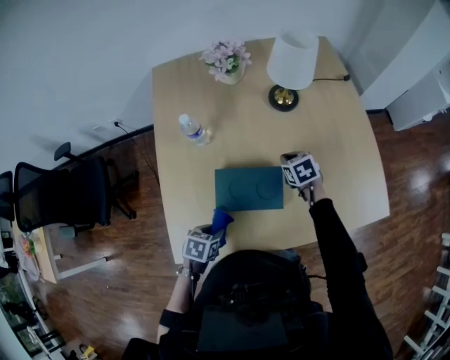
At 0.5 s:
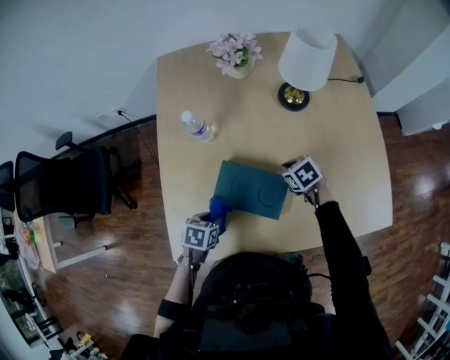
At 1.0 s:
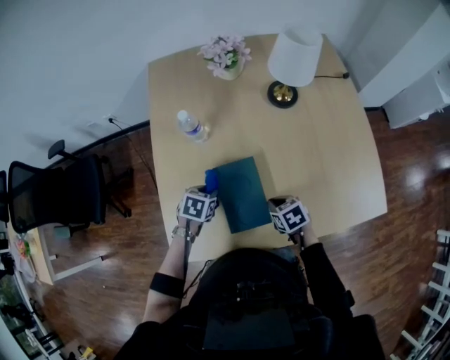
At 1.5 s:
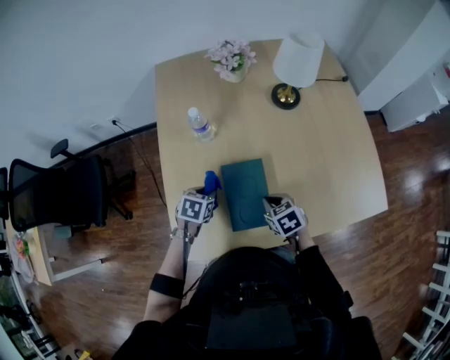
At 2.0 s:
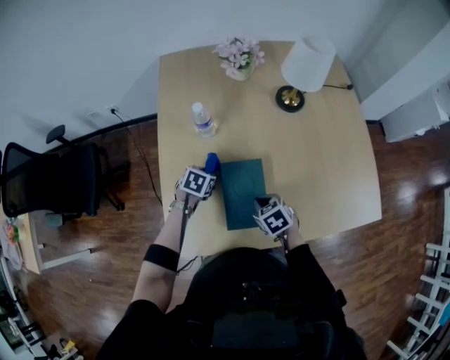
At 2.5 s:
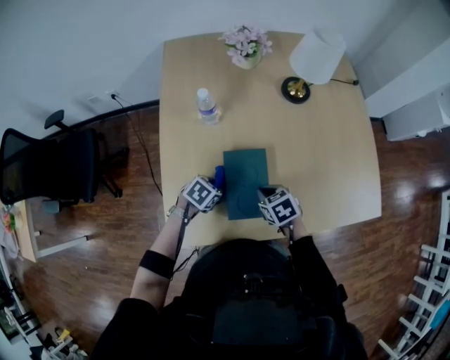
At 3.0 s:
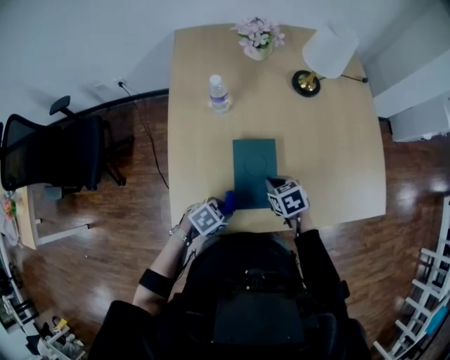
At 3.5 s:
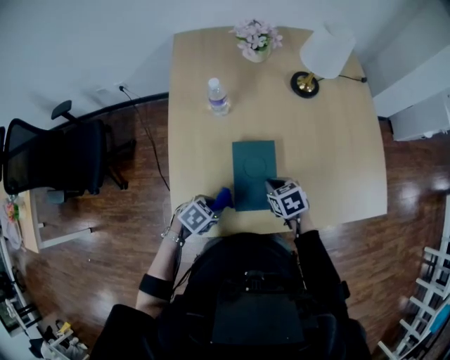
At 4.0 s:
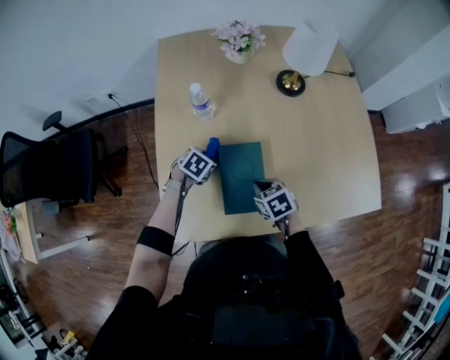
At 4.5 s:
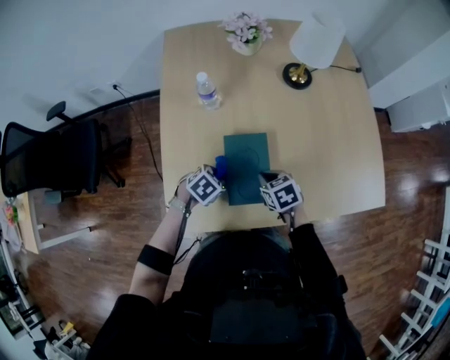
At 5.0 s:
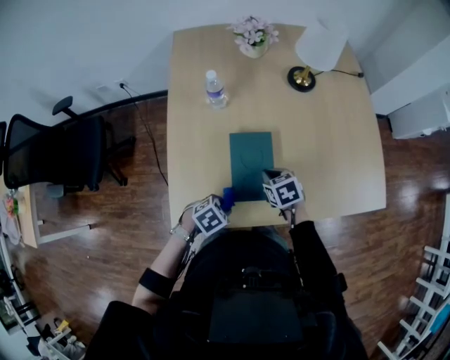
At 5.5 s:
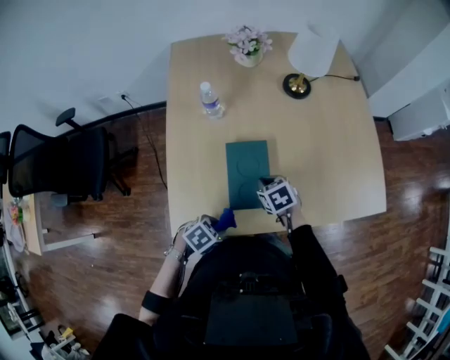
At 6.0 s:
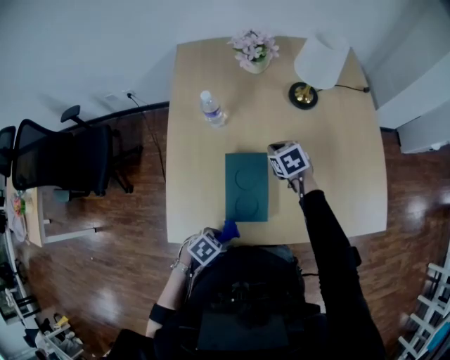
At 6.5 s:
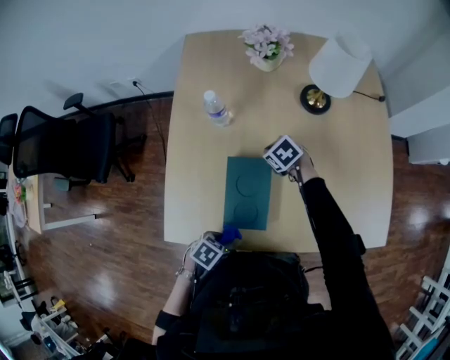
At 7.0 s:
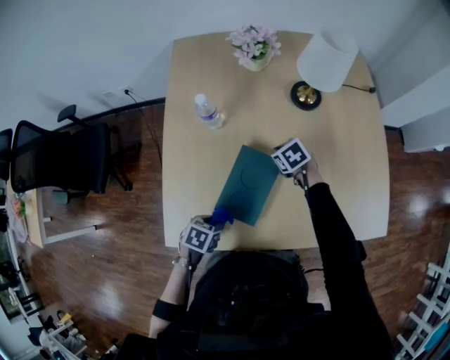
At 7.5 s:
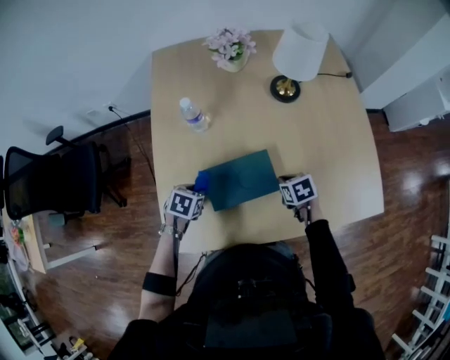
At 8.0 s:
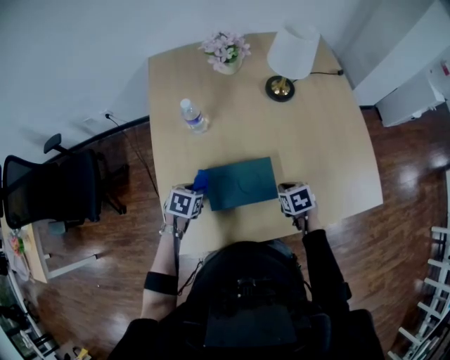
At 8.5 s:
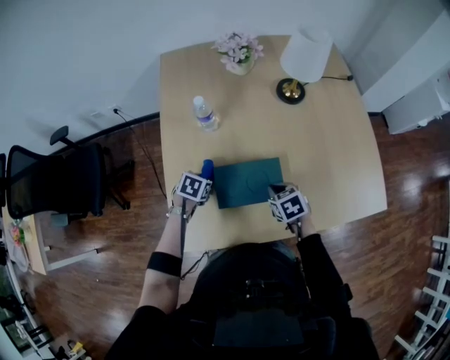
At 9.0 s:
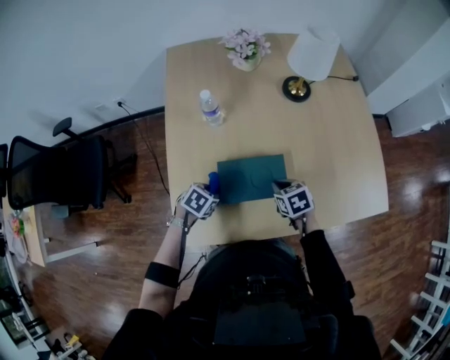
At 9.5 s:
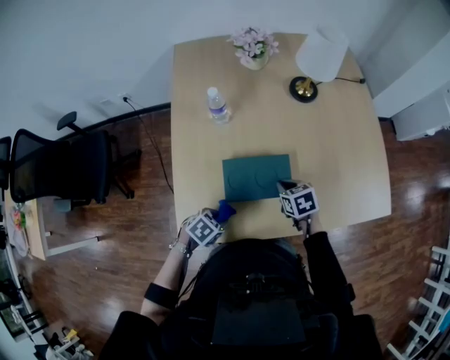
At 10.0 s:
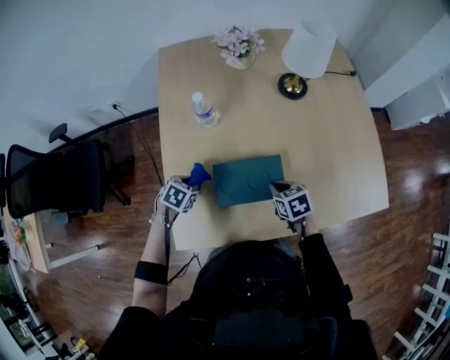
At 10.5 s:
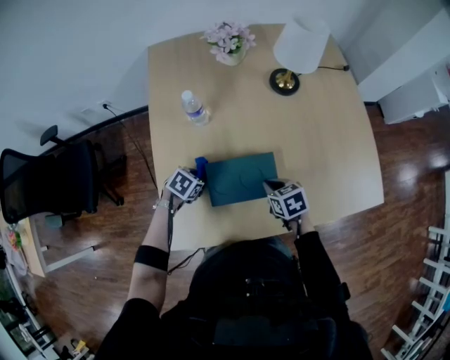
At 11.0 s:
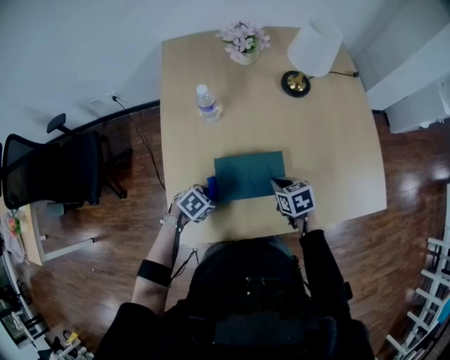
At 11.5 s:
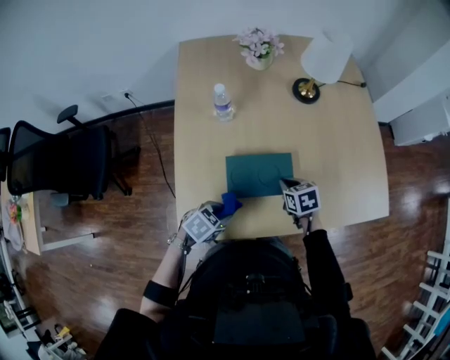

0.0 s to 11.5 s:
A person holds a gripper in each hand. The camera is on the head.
0.0 to 2.0 s: The right gripper moves backward and to the left, roughly 20 cm, while the left gripper travels forward by approximately 20 cm.
4.0 to 6.0 s: The left gripper ends up about 30 cm from where it was; the right gripper moves approximately 15 cm.
6.0 to 7.5 s: The left gripper changes place by approximately 25 cm, and rotates approximately 20 degrees; the right gripper shifts by approximately 15 cm, and changes its angle by approximately 20 degrees.
7.5 to 9.5 s: The left gripper heads backward, covering about 15 cm, and changes its angle by about 30 degrees; the right gripper moves to the left, roughly 5 cm.
9.5 to 11.5 s: The left gripper goes forward and returns, some 15 cm each way.

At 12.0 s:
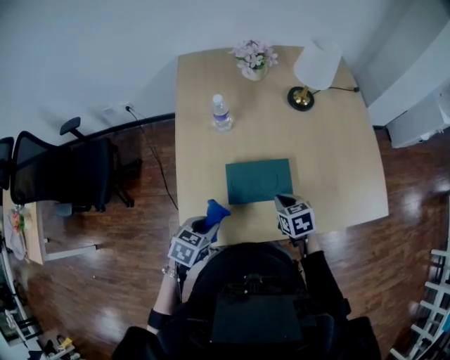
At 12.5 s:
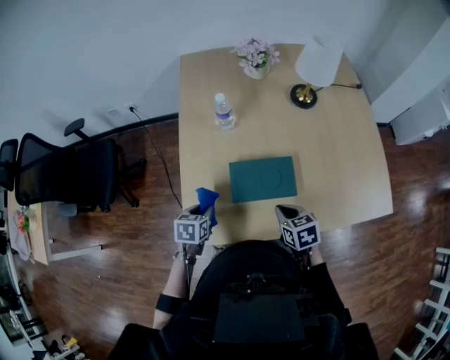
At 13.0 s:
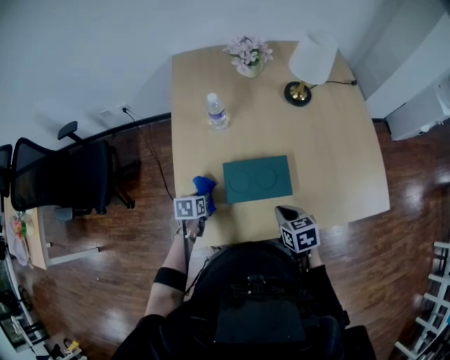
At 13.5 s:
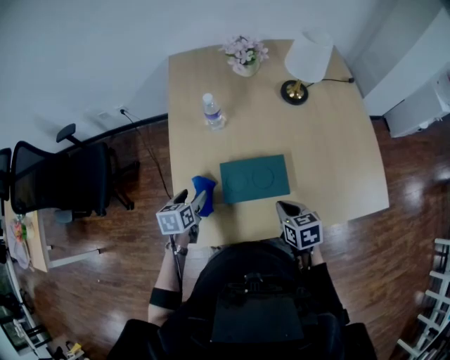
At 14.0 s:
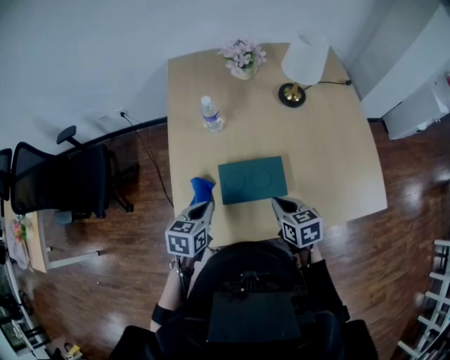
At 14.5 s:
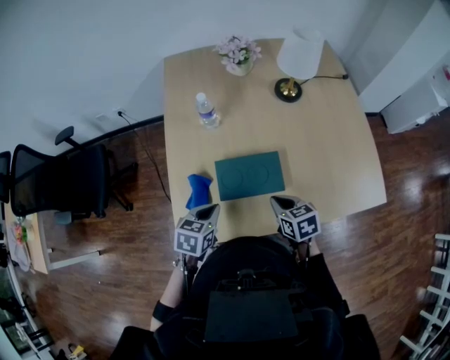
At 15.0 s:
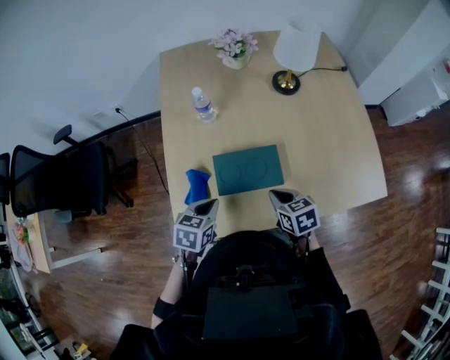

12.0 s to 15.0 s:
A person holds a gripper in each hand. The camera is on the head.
12.0 to 13.5 s: The left gripper moves forward and to the left, about 15 cm, travels downward and back again, some 10 cm each way, rotates about 30 degrees, and opens its fingers.
13.5 to 15.0 s: The left gripper is displaced to the right, backward and upward by some 15 cm, swivels some 20 degrees, and closes up.

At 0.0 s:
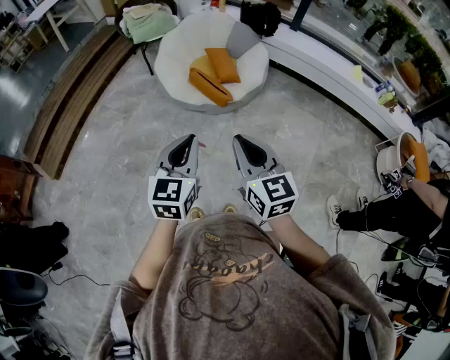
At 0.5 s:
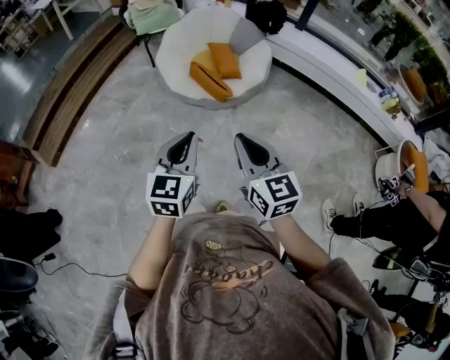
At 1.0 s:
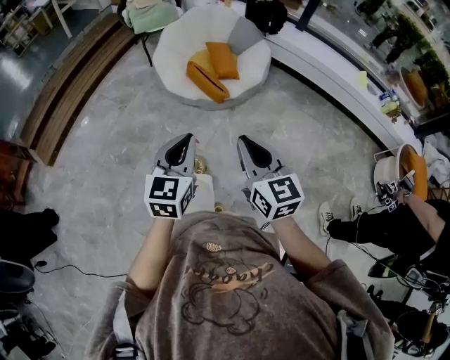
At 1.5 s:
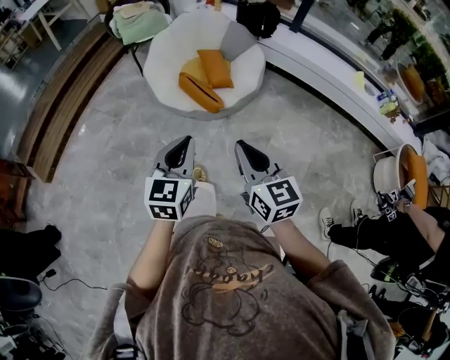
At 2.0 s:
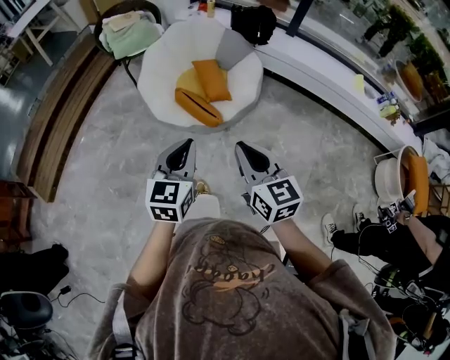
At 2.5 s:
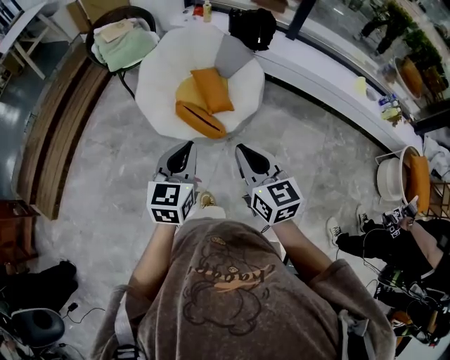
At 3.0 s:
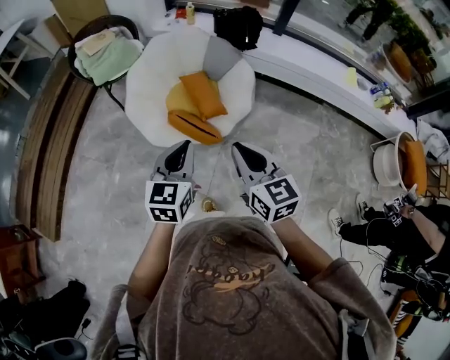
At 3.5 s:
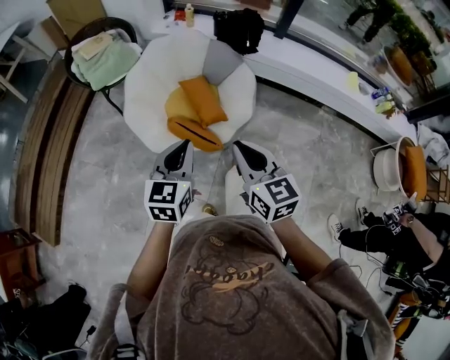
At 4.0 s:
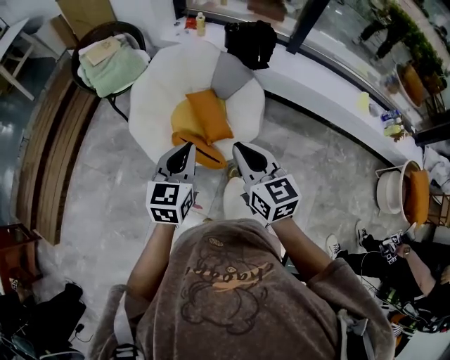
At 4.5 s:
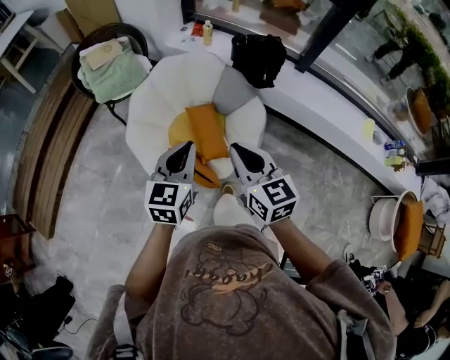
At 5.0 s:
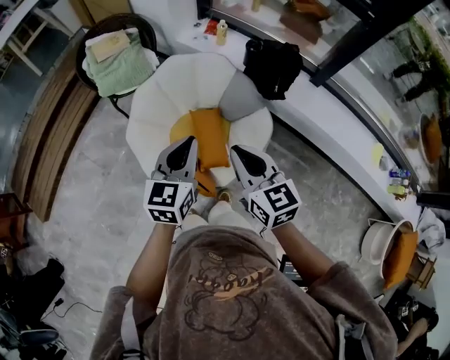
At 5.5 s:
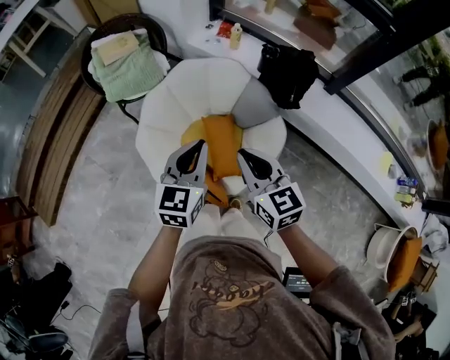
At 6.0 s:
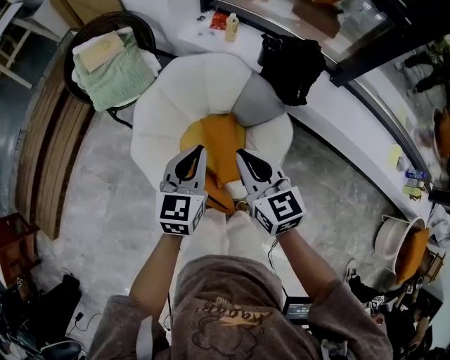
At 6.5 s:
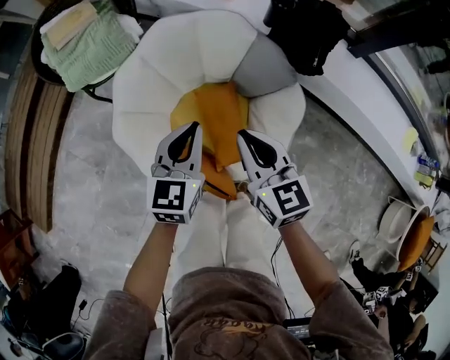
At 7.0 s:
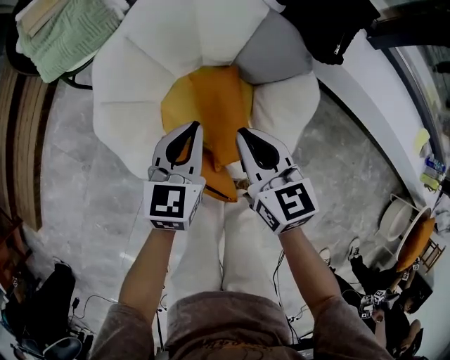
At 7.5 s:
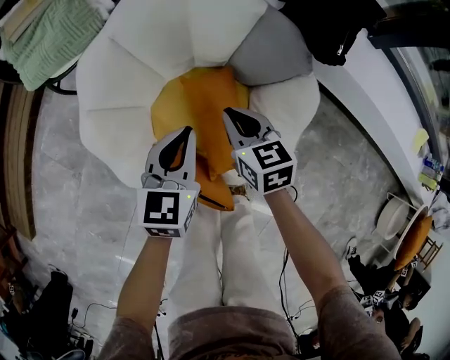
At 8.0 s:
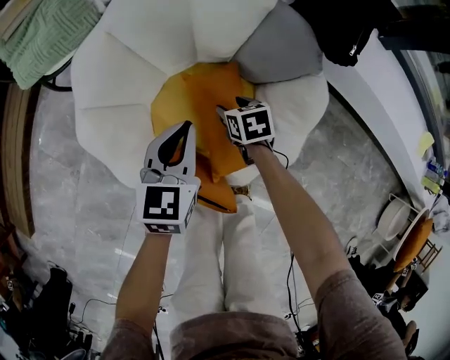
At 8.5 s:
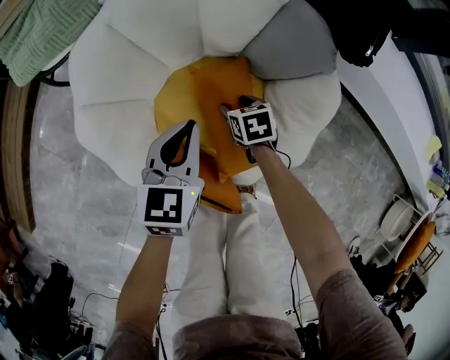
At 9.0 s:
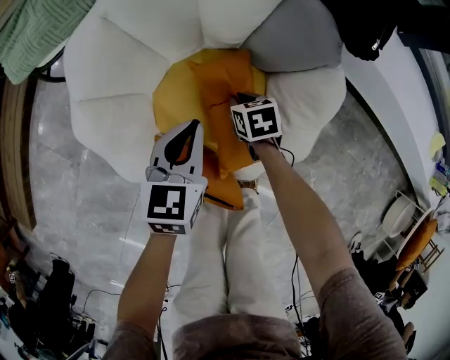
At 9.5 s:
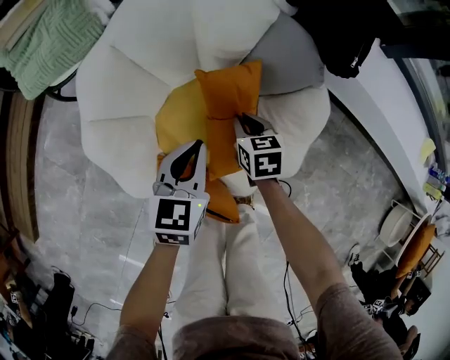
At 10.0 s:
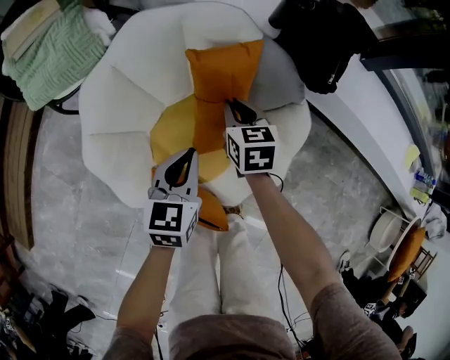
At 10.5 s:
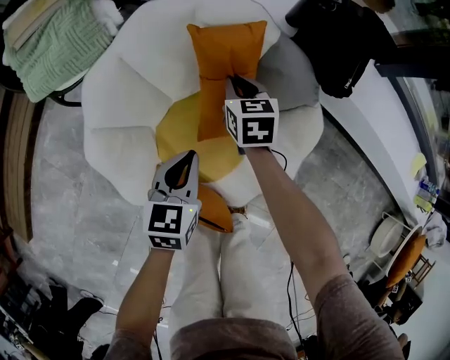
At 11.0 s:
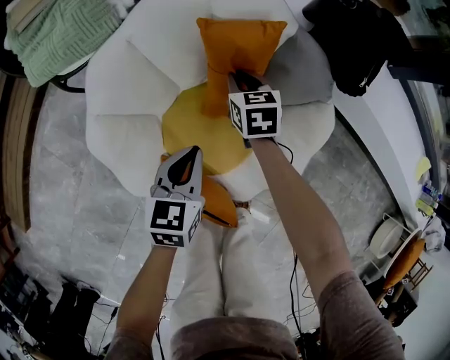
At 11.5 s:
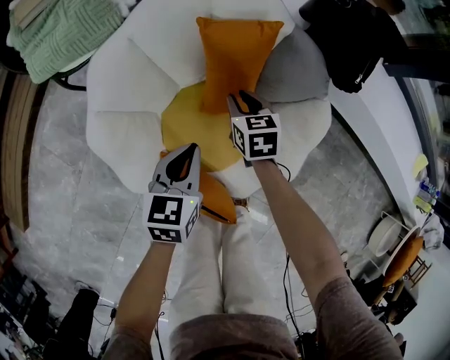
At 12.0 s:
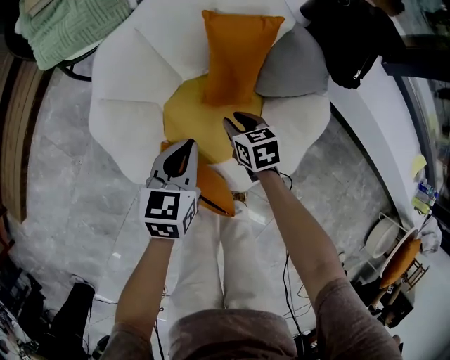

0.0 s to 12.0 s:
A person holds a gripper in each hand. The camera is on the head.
0.0 to 2.0 s: The left gripper moves forward, about 20 cm. The right gripper moves forward and to the right, roughly 20 cm.
2.0 to 4.0 s: The two grippers go some 30 cm forward.
4.0 to 6.0 s: The two grippers go about 30 cm forward.
6.0 to 8.0 s: The left gripper heads downward, covering some 30 cm. The right gripper is displaced downward by roughly 50 cm, angles its fingers downward, by some 40 degrees, and opens up.
8.0 to 10.0 s: The right gripper shifts about 15 cm upward and forward, turns by about 20 degrees, and closes its fingers.
10.0 to 12.0 s: The right gripper travels backward, downward and to the left by approximately 15 cm, and swivels some 20 degrees. Meanwhile the left gripper is displaced to the left by about 5 cm.
